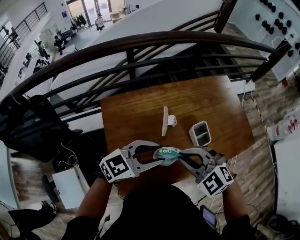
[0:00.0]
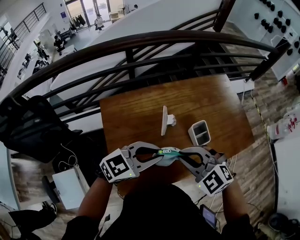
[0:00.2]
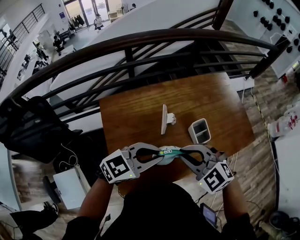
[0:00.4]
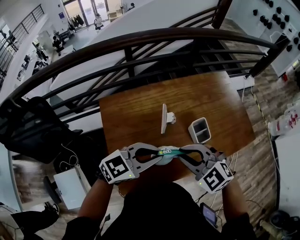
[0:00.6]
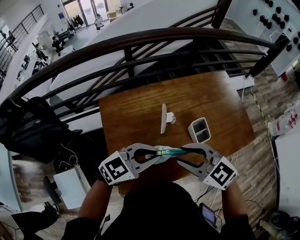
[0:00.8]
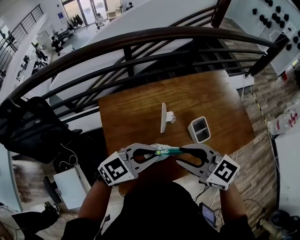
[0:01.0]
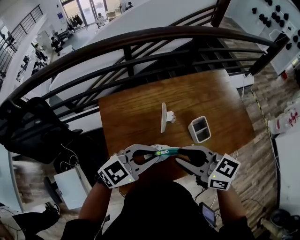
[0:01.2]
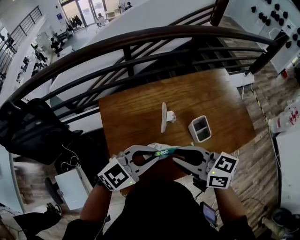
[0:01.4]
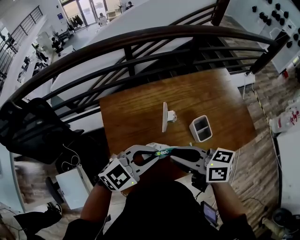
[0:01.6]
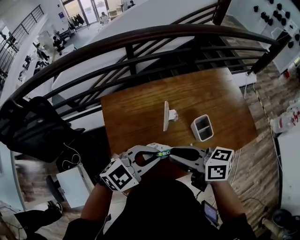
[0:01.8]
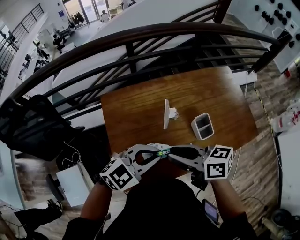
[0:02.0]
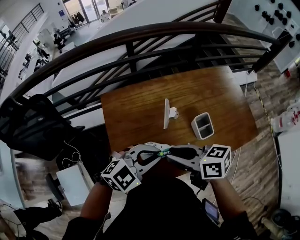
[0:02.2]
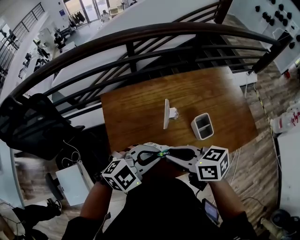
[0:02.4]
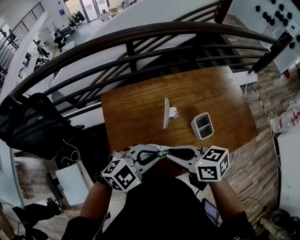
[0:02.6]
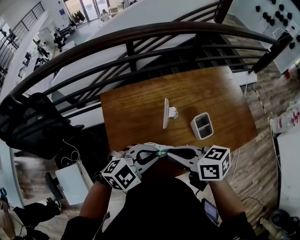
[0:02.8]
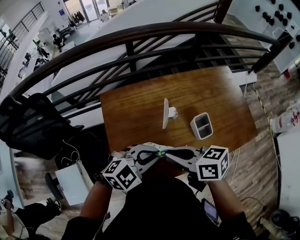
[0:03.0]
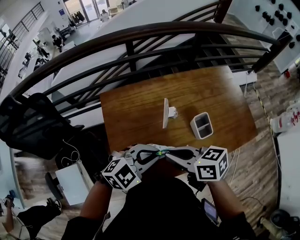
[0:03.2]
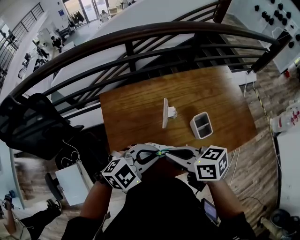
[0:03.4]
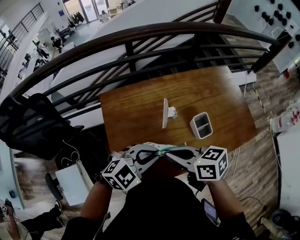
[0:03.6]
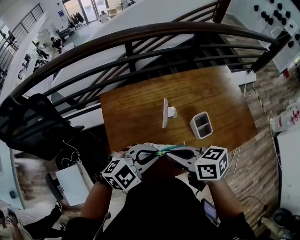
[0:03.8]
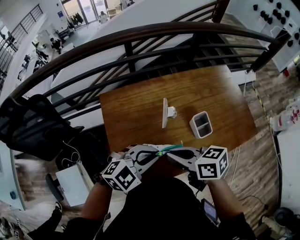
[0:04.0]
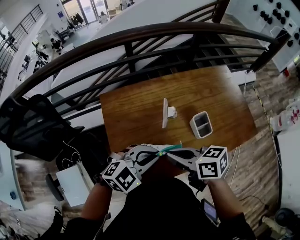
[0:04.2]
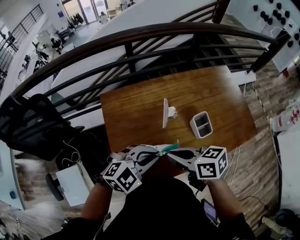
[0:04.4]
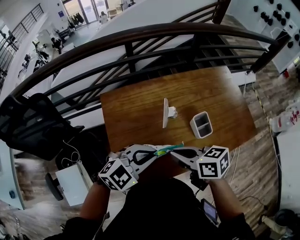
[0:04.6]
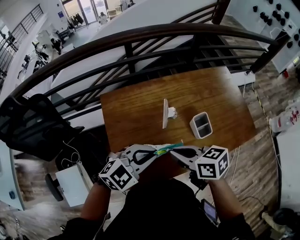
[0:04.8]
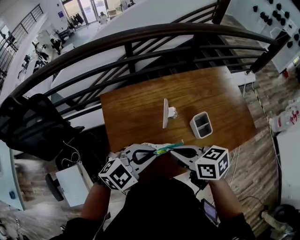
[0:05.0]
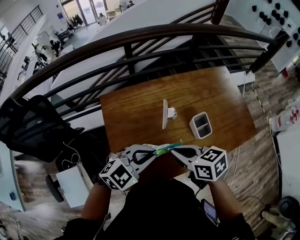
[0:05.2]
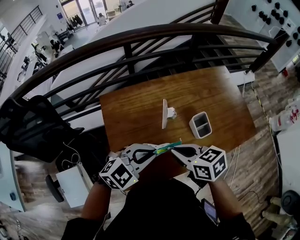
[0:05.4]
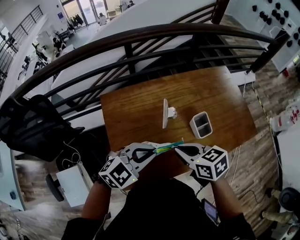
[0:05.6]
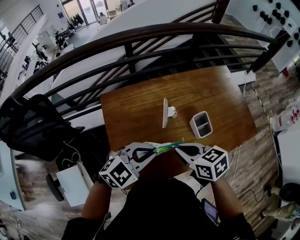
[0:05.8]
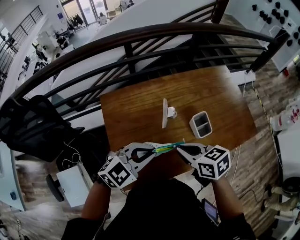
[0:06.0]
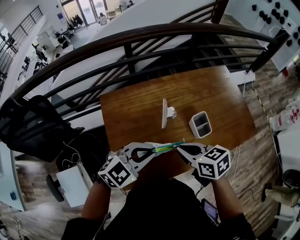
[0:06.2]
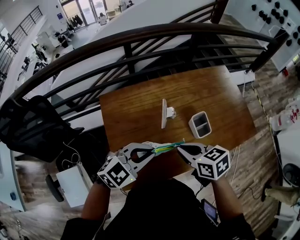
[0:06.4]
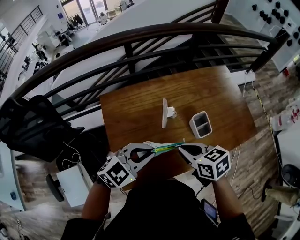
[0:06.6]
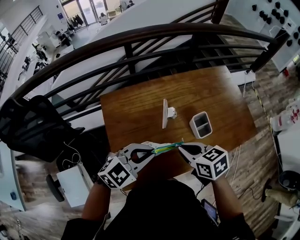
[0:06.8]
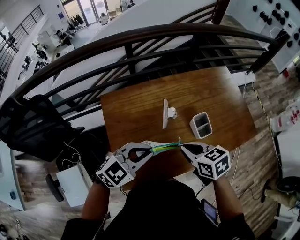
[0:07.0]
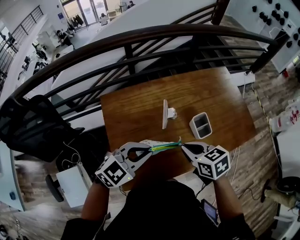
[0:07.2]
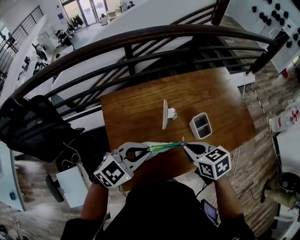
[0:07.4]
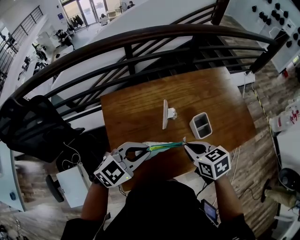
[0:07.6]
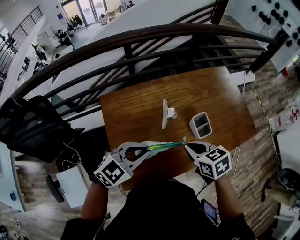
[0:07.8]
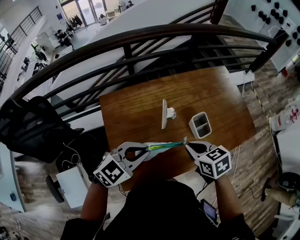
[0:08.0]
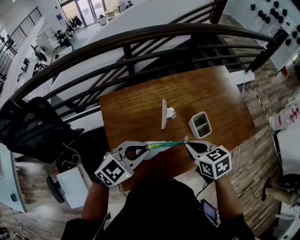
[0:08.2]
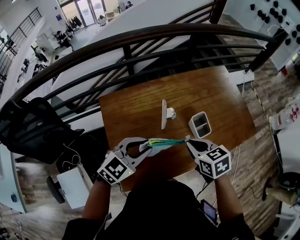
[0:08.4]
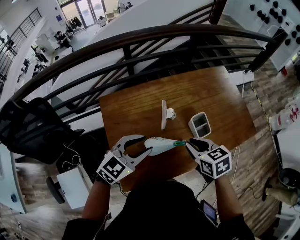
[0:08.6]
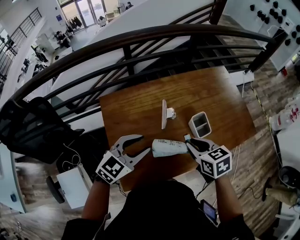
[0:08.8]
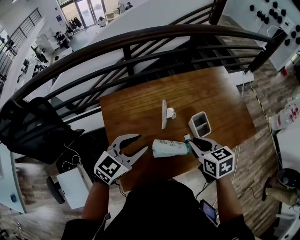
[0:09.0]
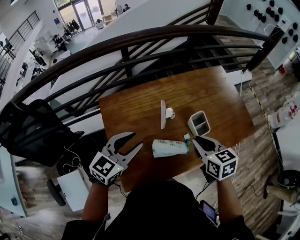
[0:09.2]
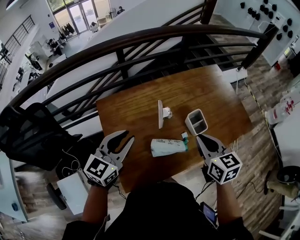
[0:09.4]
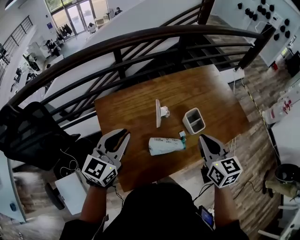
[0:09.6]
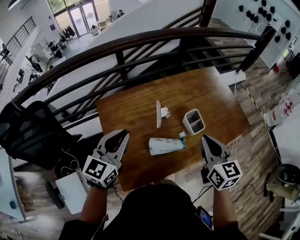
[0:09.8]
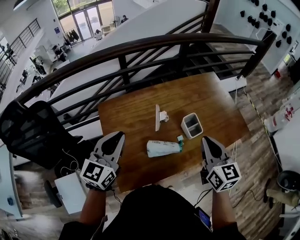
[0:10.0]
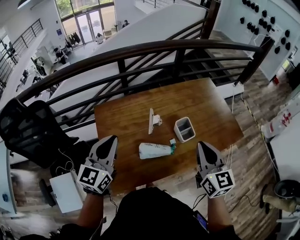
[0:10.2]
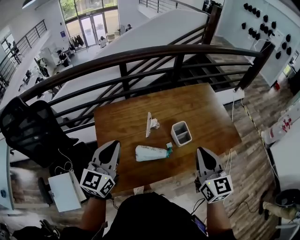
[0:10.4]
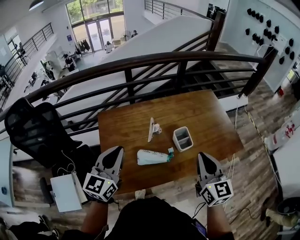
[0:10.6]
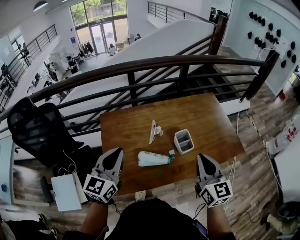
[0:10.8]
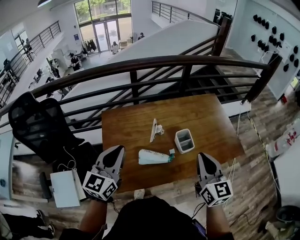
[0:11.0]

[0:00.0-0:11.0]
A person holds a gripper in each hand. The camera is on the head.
0:00.0 to 0:01.6: The left gripper closes. Meanwhile the right gripper rolls clockwise, seen from behind, by roughly 70 degrees.
0:01.6 to 0:04.8: The grippers move only a little.
0:04.8 to 0:06.2: The grippers make only small movements.
0:06.2 to 0:07.8: The grippers stay close to where they were, moving slightly.
0:07.8 to 0:09.4: The left gripper shifts roughly 5 cm to the left, and rotates approximately 30 degrees. The right gripper shifts approximately 5 cm upward, and changes its angle by some 30 degrees.
0:09.4 to 0:11.0: The right gripper heads upward, to the right and backward, covering about 15 cm, and turns by some 20 degrees. The left gripper travels backward and upward by approximately 10 cm, and changes its angle by roughly 20 degrees.

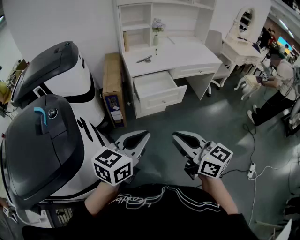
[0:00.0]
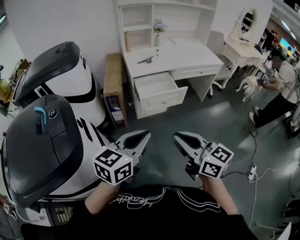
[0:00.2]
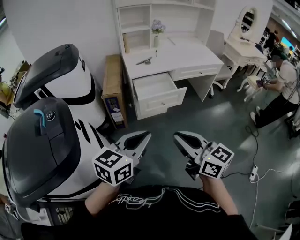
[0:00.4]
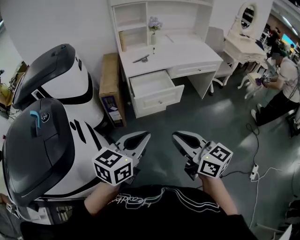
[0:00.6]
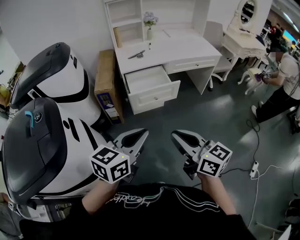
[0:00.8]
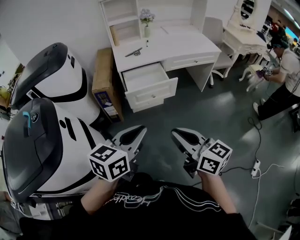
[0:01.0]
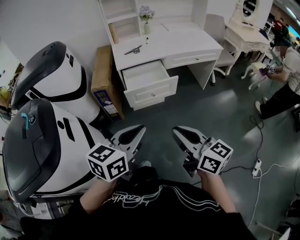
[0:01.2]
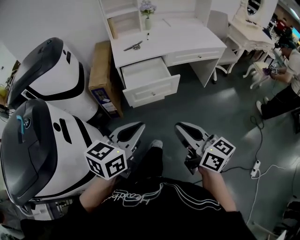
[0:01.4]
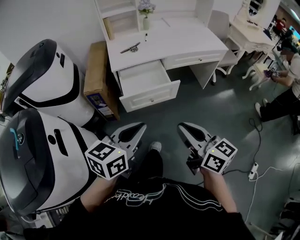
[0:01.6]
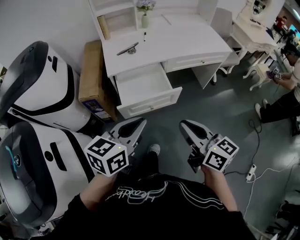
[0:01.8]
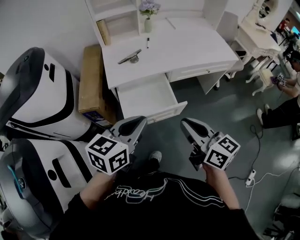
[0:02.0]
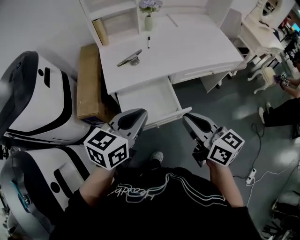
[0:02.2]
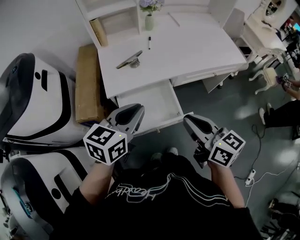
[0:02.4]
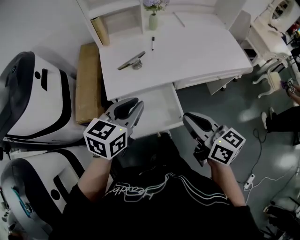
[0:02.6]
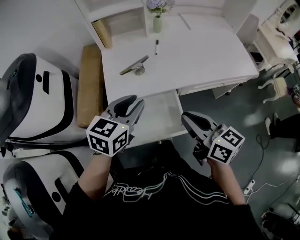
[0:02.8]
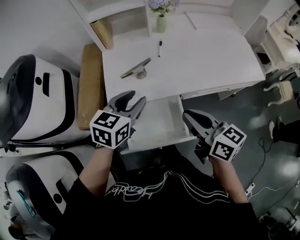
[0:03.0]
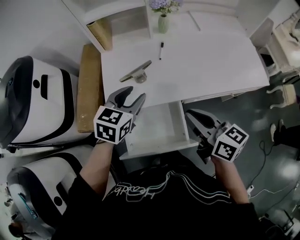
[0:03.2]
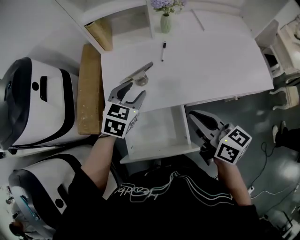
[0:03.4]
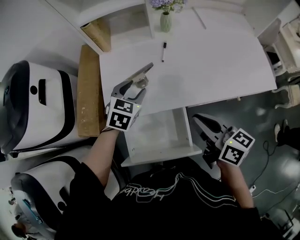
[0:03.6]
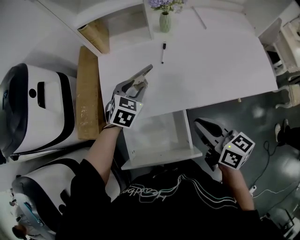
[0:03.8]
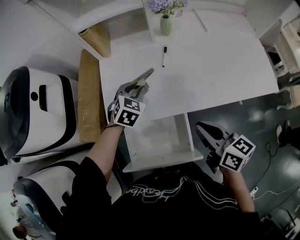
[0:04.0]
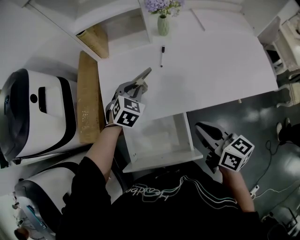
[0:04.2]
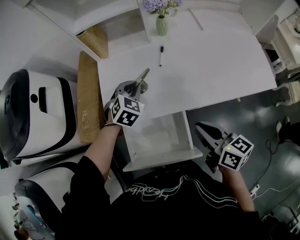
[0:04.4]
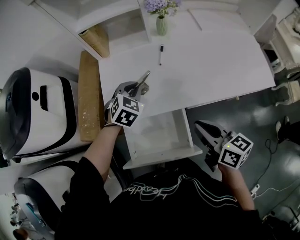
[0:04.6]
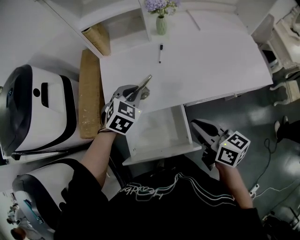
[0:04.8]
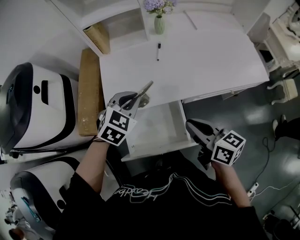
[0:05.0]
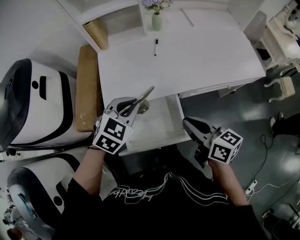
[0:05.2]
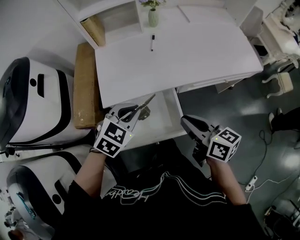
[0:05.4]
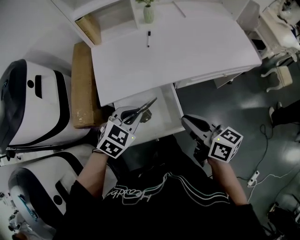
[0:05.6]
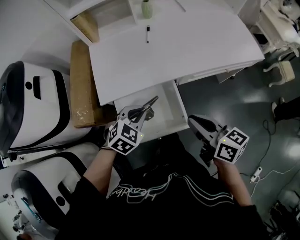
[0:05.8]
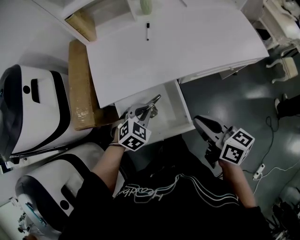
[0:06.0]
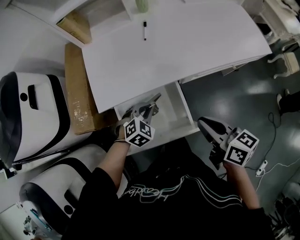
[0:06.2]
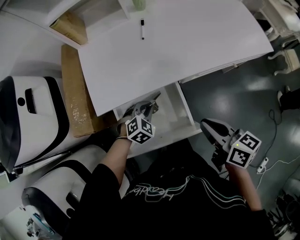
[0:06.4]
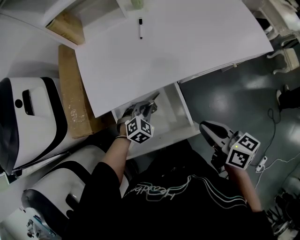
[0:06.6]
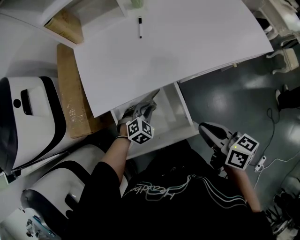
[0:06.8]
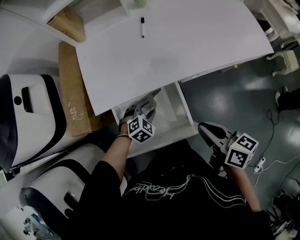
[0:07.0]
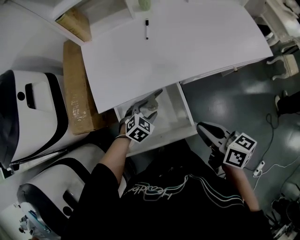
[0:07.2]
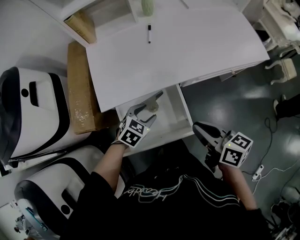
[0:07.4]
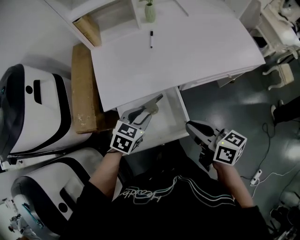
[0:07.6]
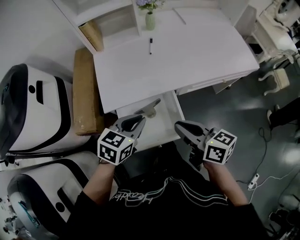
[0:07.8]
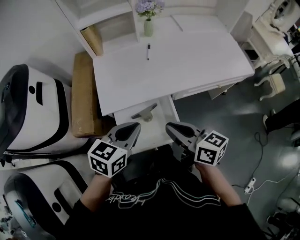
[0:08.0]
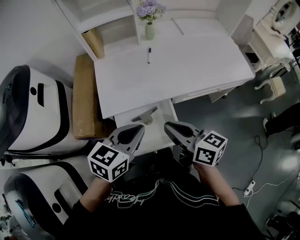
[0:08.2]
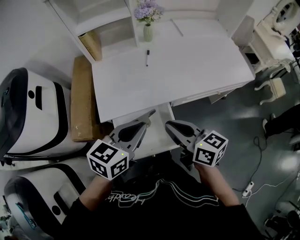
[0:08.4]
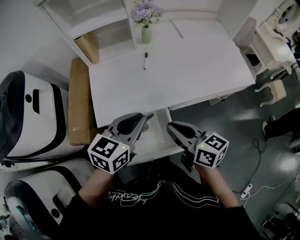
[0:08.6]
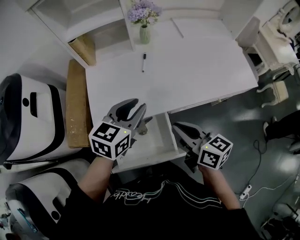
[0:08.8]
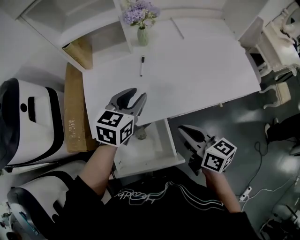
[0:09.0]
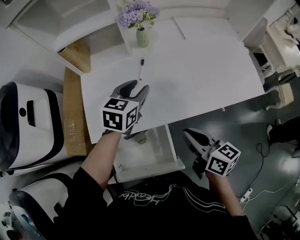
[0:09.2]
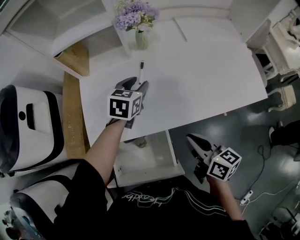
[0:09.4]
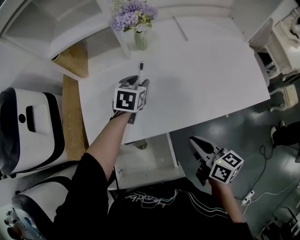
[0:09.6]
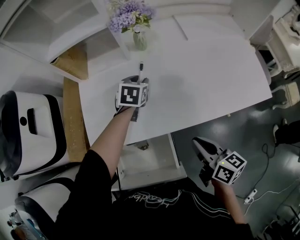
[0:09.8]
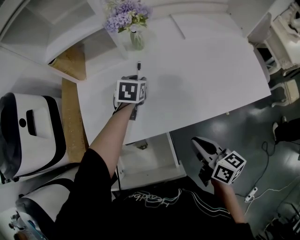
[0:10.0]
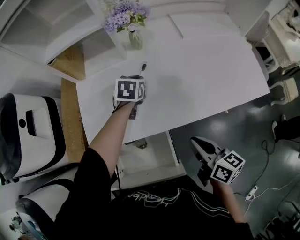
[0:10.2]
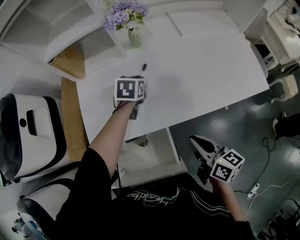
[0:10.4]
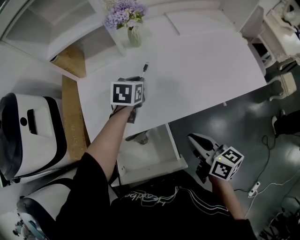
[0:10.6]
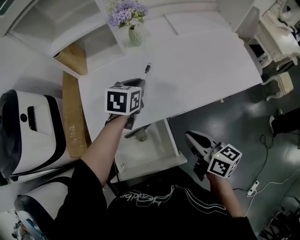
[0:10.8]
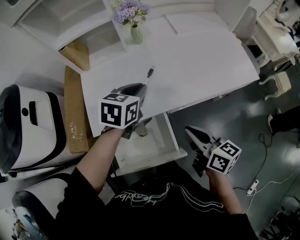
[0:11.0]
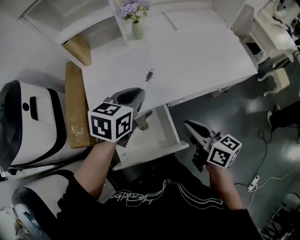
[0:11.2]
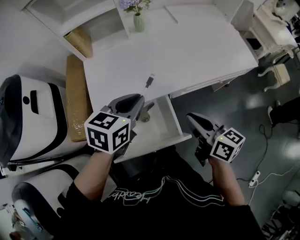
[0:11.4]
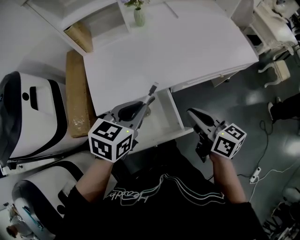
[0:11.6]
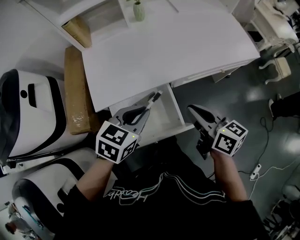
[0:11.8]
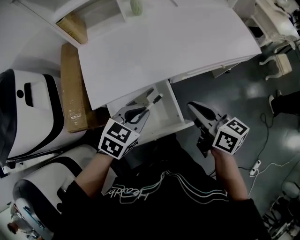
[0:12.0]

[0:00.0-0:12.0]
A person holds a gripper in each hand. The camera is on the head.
0:00.0 to 0:01.6: The left gripper travels forward, to the right and downward by approximately 25 cm; the right gripper travels to the right, forward and downward by about 25 cm.
0:01.6 to 0:03.0: The pair of grippers is taken forward, some 50 cm. The left gripper opens its fingers.
0:03.0 to 0:04.4: The left gripper goes about 20 cm forward and downward, changes its angle by about 40 degrees, and closes its fingers. Meanwhile the right gripper shifts approximately 10 cm downward, to the right and forward.
0:04.4 to 0:06.0: The left gripper moves backward, roughly 25 cm, and swivels some 20 degrees; the right gripper goes roughly 10 cm backward.
0:06.0 to 0:07.6: The left gripper moves about 15 cm downward and comes back, changes its angle by roughly 30 degrees, and opens.
0:07.6 to 0:09.0: The right gripper goes roughly 15 cm forward and to the right. The left gripper moves forward and upward, some 25 cm, turns by some 20 degrees, and closes, then opens again.
0:09.0 to 0:10.4: The left gripper shifts some 20 cm downward and forward, and rotates roughly 30 degrees. Meanwhile the right gripper travels to the right and downward by roughly 10 cm.
0:10.4 to 0:12.0: The left gripper shifts roughly 35 cm backward, and rotates some 30 degrees, while the right gripper travels backward and to the left by roughly 10 cm.
